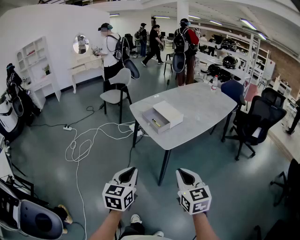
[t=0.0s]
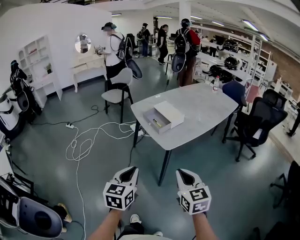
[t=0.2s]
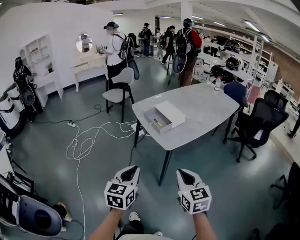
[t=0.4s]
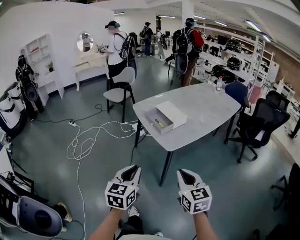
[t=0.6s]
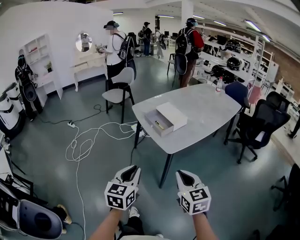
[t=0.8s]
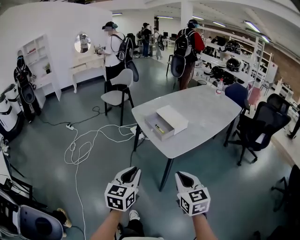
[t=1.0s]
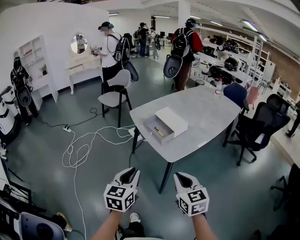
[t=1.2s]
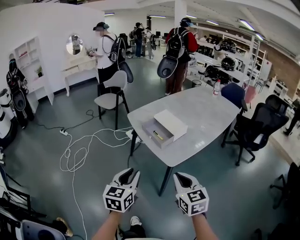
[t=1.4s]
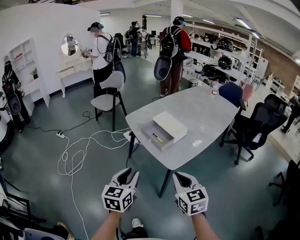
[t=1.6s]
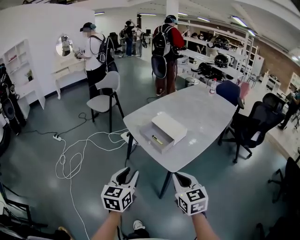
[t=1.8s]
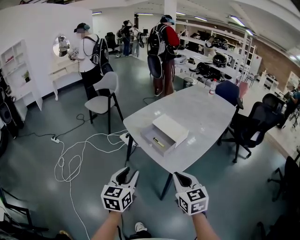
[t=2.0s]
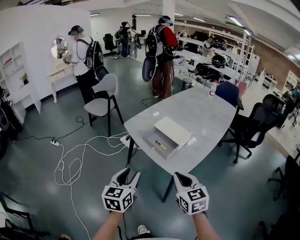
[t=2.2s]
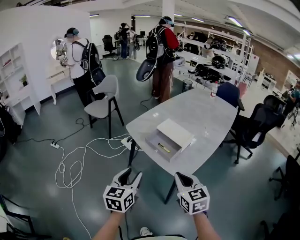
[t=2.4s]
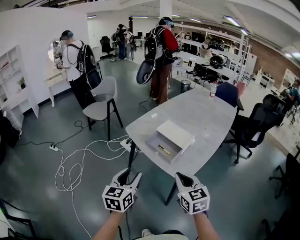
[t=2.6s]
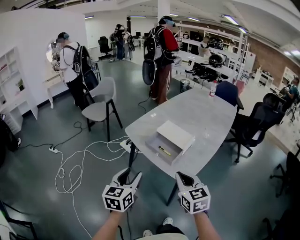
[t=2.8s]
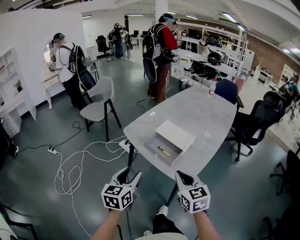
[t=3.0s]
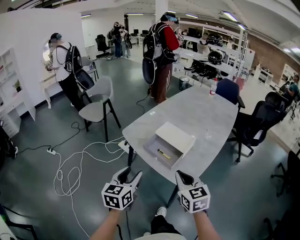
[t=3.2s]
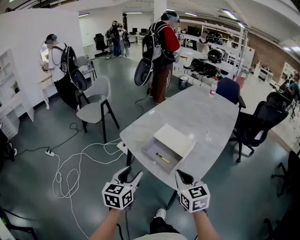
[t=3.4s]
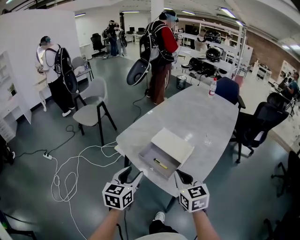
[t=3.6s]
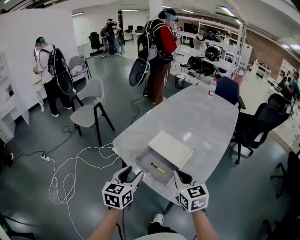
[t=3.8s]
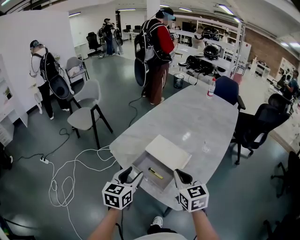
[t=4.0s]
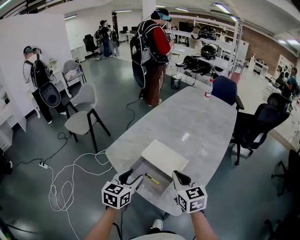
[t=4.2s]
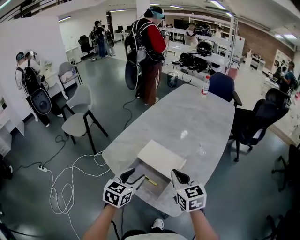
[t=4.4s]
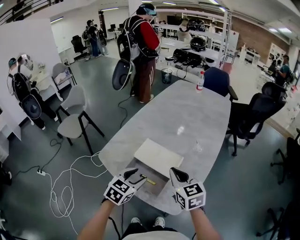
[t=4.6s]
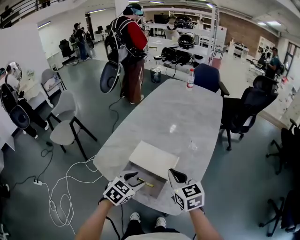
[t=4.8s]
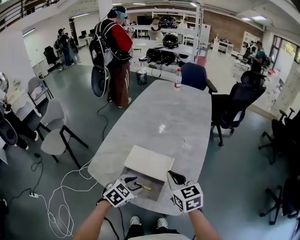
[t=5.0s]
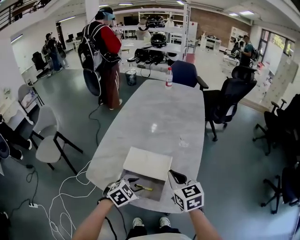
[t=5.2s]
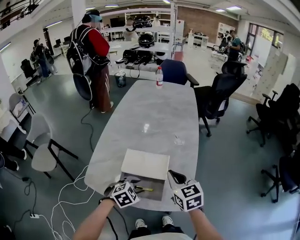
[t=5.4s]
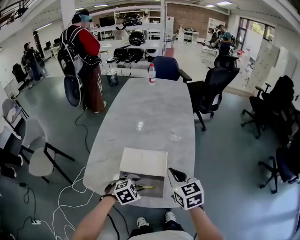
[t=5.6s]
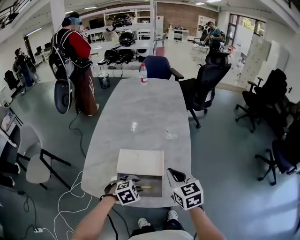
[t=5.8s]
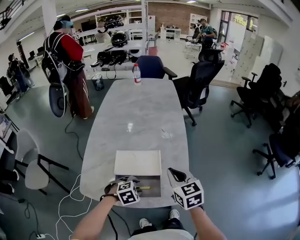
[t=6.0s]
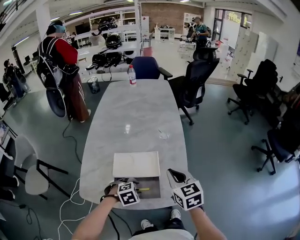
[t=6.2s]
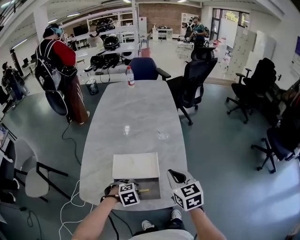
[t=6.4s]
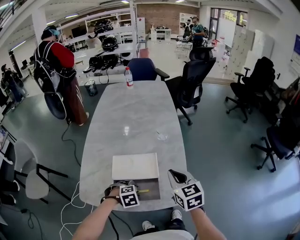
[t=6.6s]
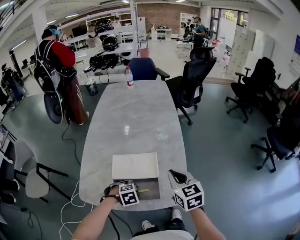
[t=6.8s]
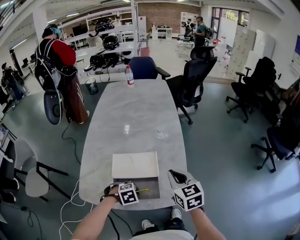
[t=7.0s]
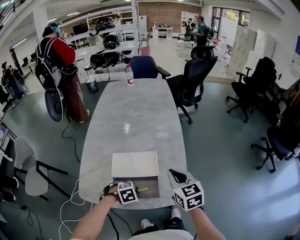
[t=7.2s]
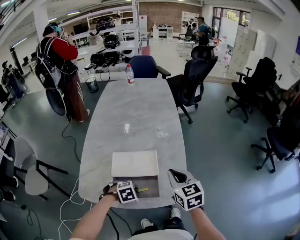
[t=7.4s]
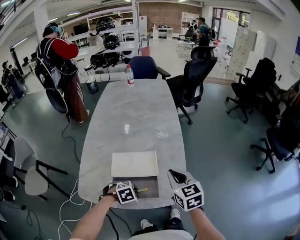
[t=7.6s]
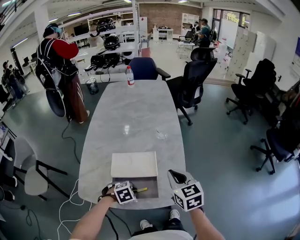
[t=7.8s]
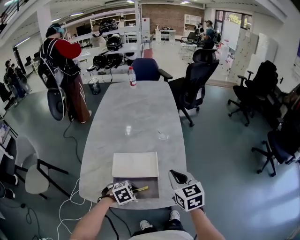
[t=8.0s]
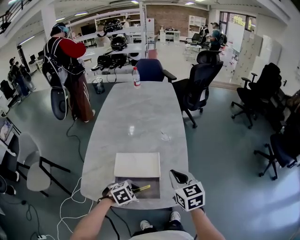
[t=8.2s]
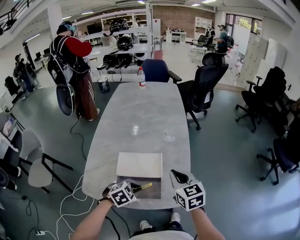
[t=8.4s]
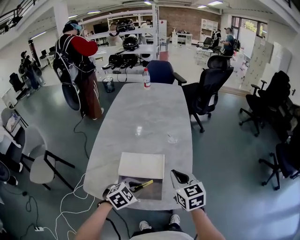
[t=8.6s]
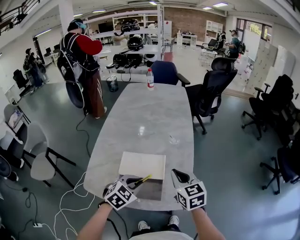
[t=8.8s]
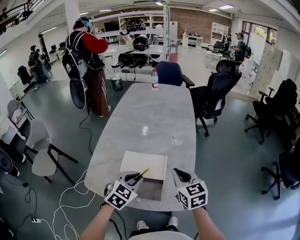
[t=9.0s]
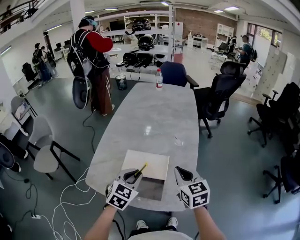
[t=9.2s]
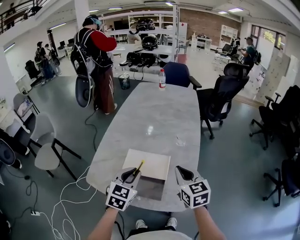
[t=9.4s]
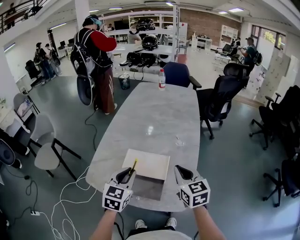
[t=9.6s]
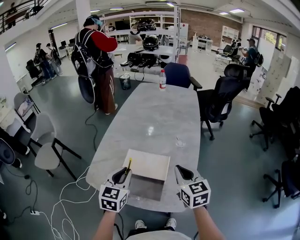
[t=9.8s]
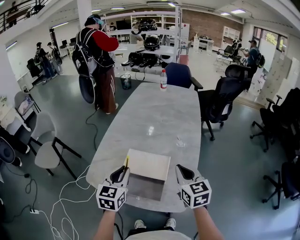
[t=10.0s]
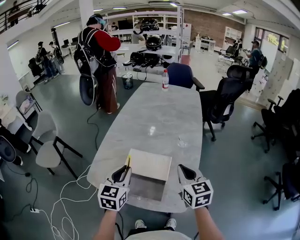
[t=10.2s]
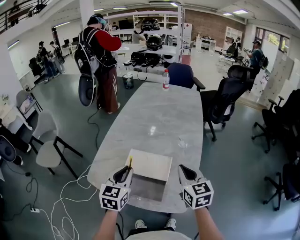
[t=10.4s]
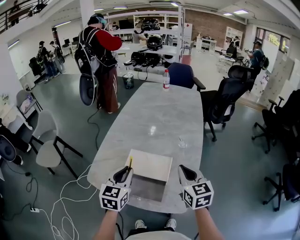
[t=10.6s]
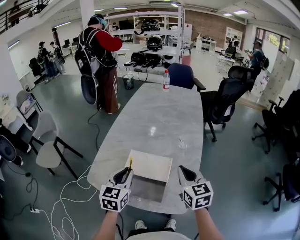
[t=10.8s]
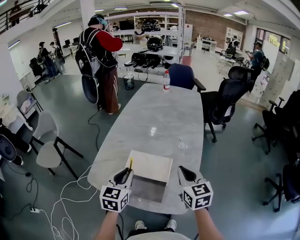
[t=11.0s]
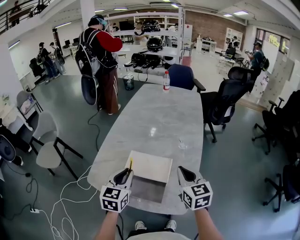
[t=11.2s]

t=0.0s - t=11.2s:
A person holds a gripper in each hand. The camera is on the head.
t=0.0s - t=1.6s: Both grippers move forward, approximately 15 cm.
t=1.6s - t=3.2s: The grippers both shift forward by approximately 15 cm. The left gripper opens up.
t=3.2s - t=4.8s: The right gripper goes approximately 20 cm forward, while the left gripper shifts approximately 25 cm forward, to the right and downward, and swivels approximately 50 degrees.
t=4.8s - t=6.4s: The left gripper moves downward, approximately 10 cm, and twists approximately 50 degrees clockwise, seen from behind. Meanwhile the right gripper turns by some 30 degrees.
t=6.4s - t=8.0s: The left gripper closes its fingers.
t=8.0s - t=9.6s: The left gripper is displaced upward by some 20 cm, and points its fingers about 40 degrees further upward, while the right gripper ends up roughly 5 cm from where it was.
t=9.6s - t=11.2s: The grippers stay close to where they were, moving slightly.

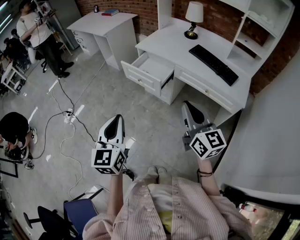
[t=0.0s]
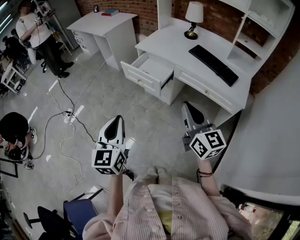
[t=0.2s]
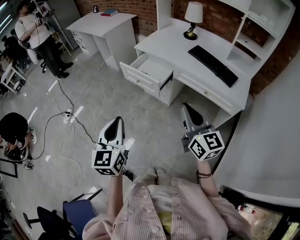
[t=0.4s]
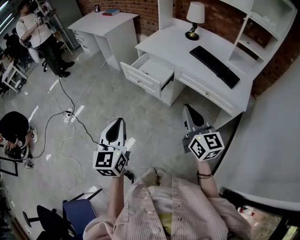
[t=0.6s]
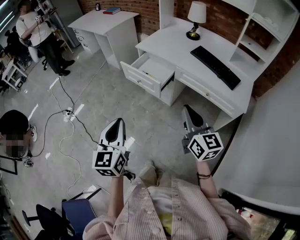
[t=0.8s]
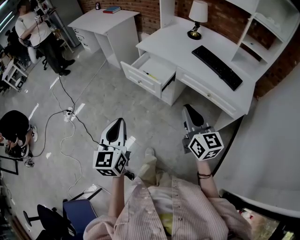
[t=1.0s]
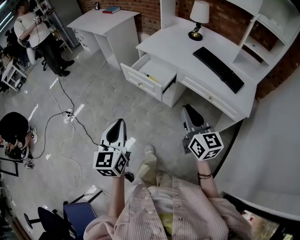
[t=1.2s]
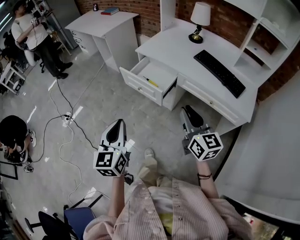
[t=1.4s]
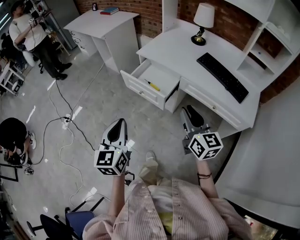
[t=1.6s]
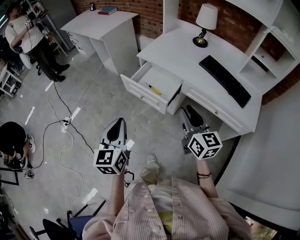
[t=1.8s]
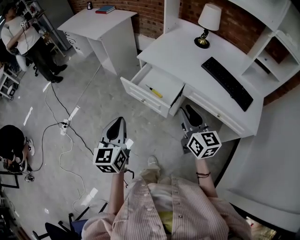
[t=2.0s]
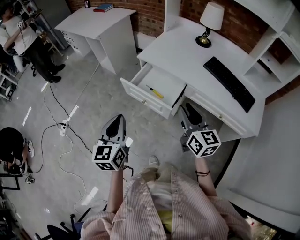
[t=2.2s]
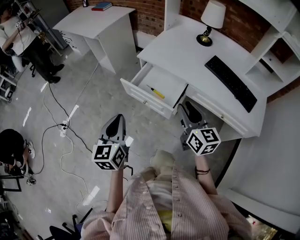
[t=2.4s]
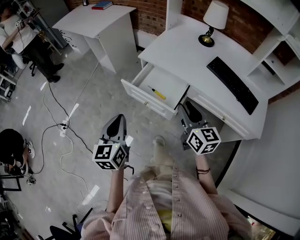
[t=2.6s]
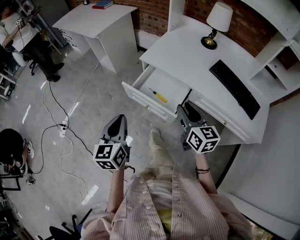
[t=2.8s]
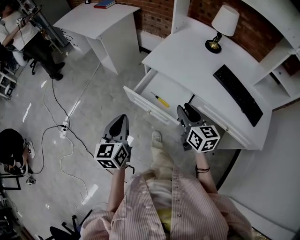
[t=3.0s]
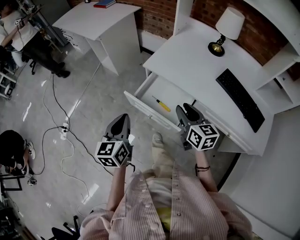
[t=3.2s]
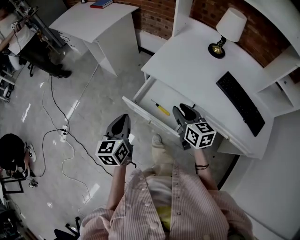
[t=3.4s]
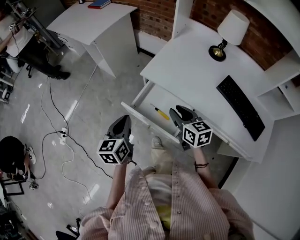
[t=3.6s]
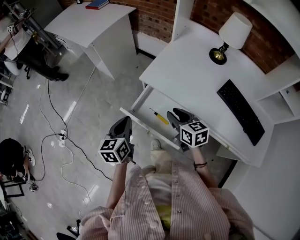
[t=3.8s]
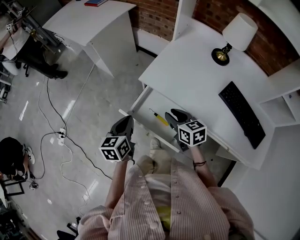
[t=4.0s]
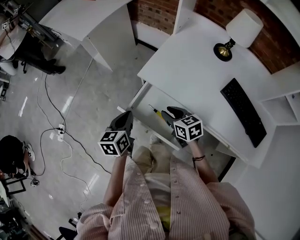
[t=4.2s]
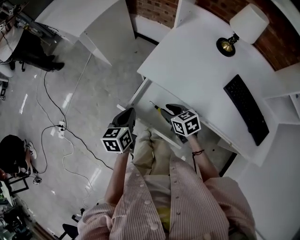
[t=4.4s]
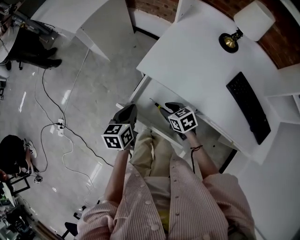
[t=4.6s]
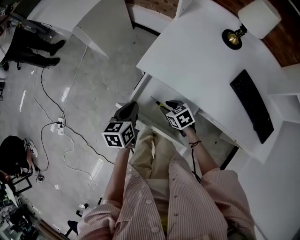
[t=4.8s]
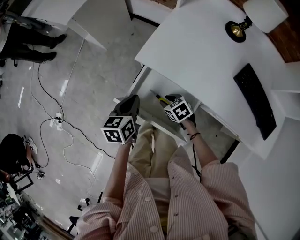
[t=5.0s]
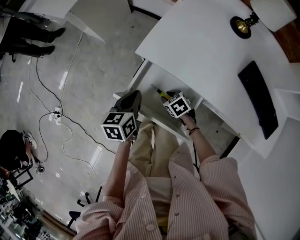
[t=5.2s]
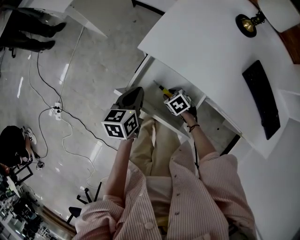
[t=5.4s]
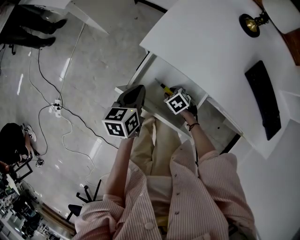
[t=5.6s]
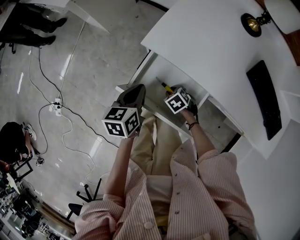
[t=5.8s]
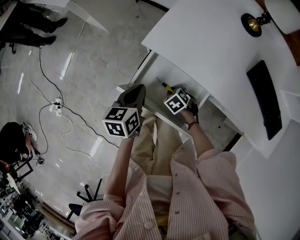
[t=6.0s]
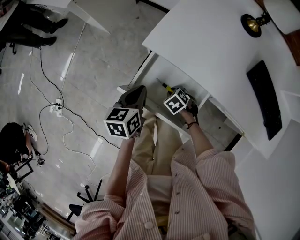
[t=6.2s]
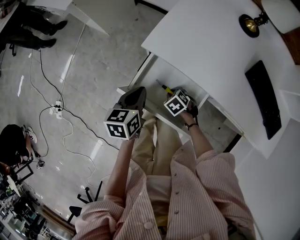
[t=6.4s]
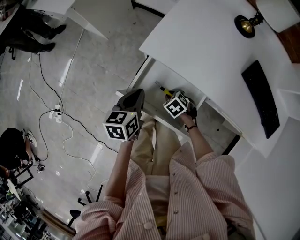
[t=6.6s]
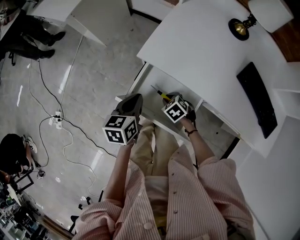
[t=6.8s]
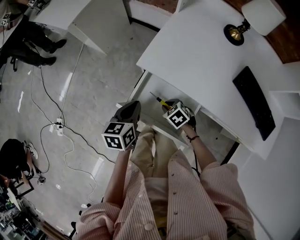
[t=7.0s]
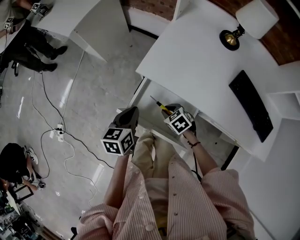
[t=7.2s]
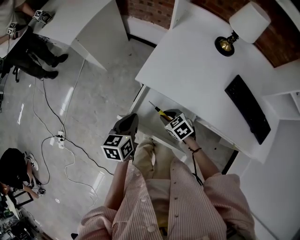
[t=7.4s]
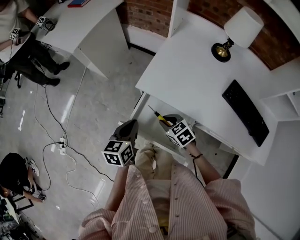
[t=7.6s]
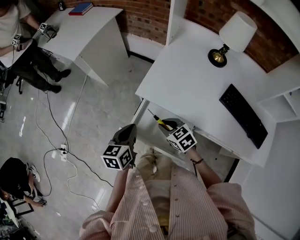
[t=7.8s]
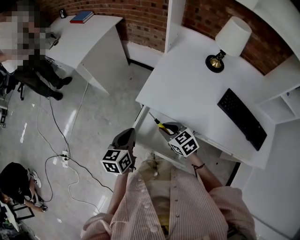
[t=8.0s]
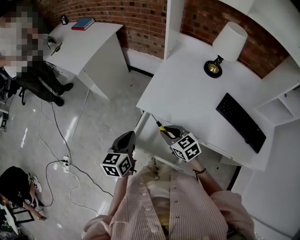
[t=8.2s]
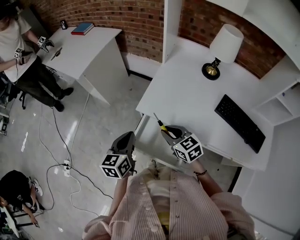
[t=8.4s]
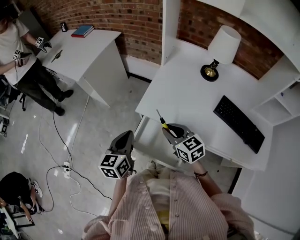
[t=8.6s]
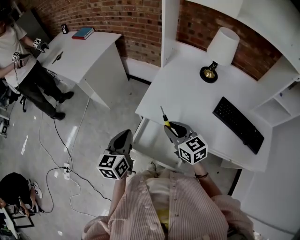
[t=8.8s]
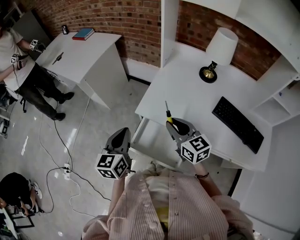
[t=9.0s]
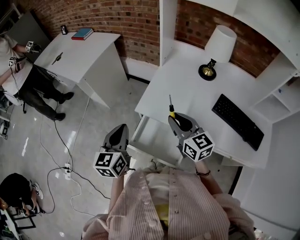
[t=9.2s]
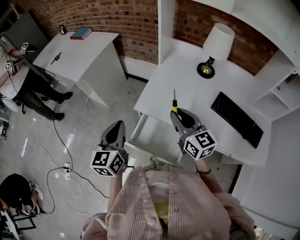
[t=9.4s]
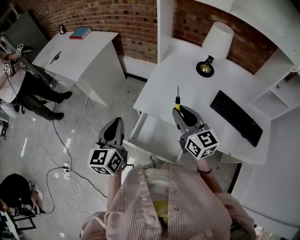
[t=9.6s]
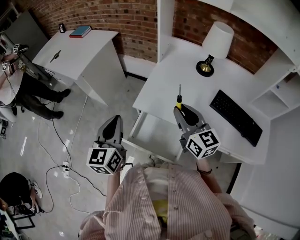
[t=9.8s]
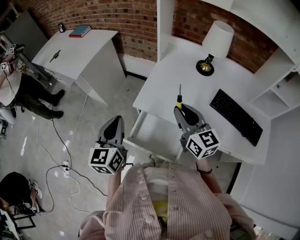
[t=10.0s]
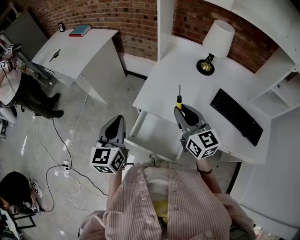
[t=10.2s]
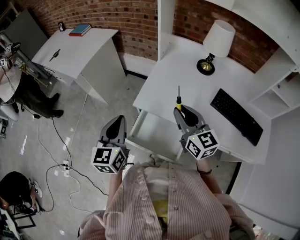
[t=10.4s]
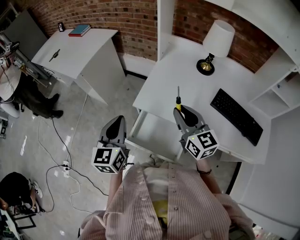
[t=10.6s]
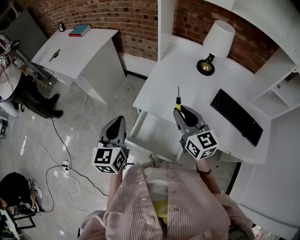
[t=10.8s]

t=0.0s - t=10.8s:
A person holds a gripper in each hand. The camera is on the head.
t=0.0s - t=1.6s: Both grippers move forward, about 15 cm.
t=1.6s - t=3.0s: The grippers both shift forward by approximately 25 cm.
t=3.0s - t=4.6s: The left gripper moves forward and downward, roughly 25 cm, and turns by some 20 degrees, while the right gripper heads downward and forward, covering roughly 25 cm, and tilts its fingers about 30 degrees downward.
t=4.6s - t=6.2s: The right gripper moves downward, about 15 cm, and turns by about 30 degrees.
t=6.2s - t=7.8s: The right gripper moves upward, roughly 20 cm, and tips its fingers upward by about 30 degrees; the left gripper moves upward, roughly 10 cm.
t=7.8s - t=9.2s: The right gripper travels upward by approximately 20 cm, and angles its fingers upward, by approximately 30 degrees, while the left gripper heads upward, covering approximately 15 cm.
t=9.2s - t=10.8s: There are only small adjustments of the grippers.

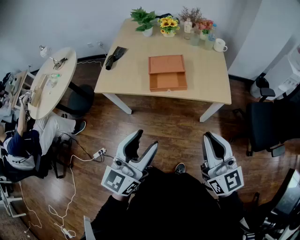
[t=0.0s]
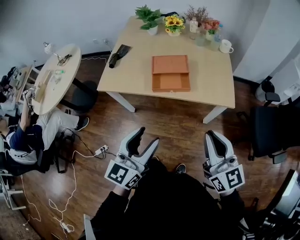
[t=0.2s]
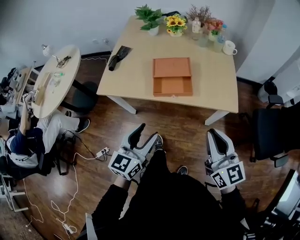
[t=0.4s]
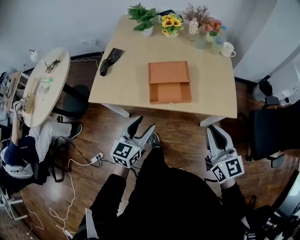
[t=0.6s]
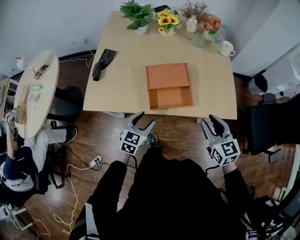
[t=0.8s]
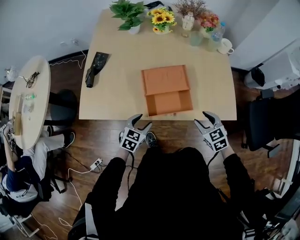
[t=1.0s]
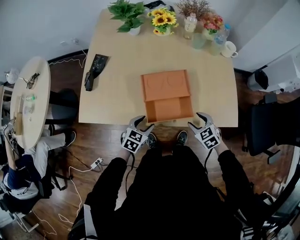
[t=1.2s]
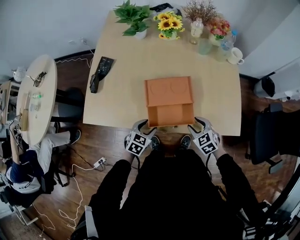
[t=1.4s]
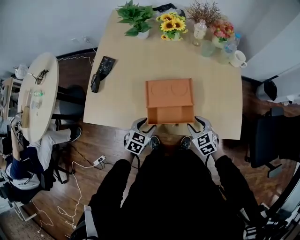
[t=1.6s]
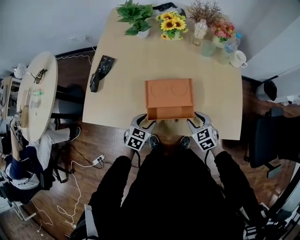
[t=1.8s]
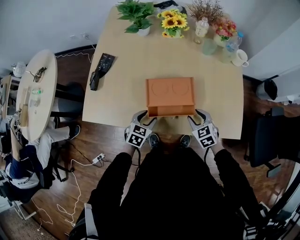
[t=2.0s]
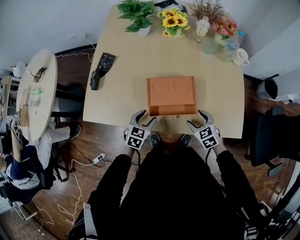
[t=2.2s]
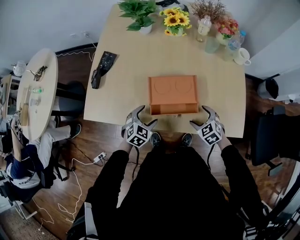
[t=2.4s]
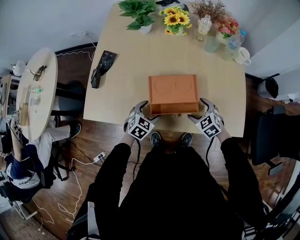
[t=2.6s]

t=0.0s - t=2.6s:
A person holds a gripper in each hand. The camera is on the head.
t=0.0s - t=1.2s: Both grippers move downward and forward, some 50 cm. The left gripper tips its fingers downward by about 50 degrees. Meanwhile the right gripper tilts its fingers approximately 50 degrees downward, and opens up.
t=1.2s - t=2.6s: The grippers both shift forward by about 10 cm. The right gripper opens; the left gripper opens.
